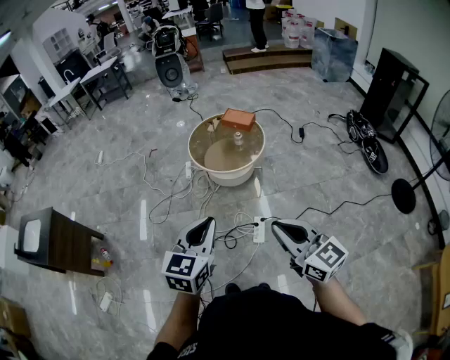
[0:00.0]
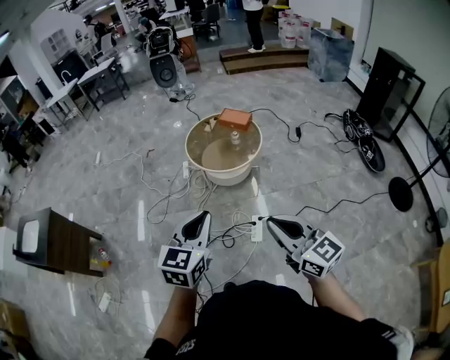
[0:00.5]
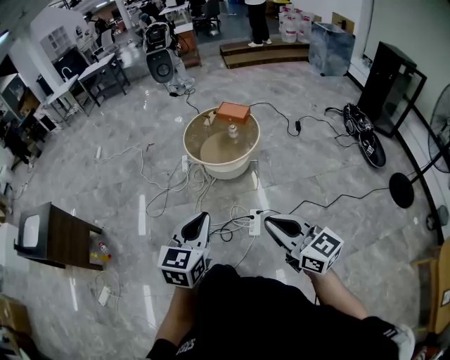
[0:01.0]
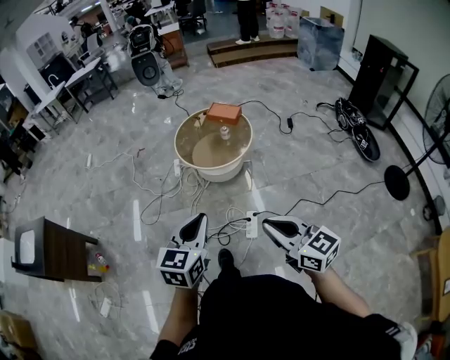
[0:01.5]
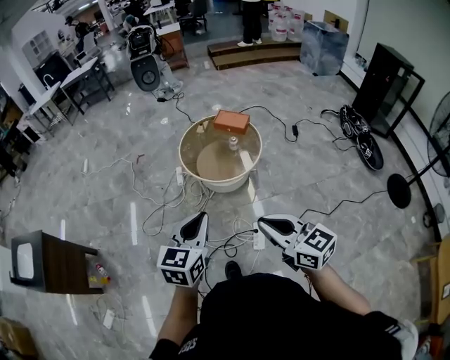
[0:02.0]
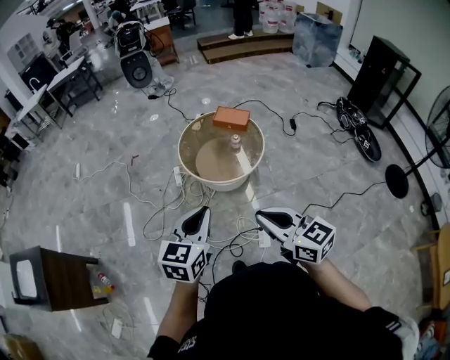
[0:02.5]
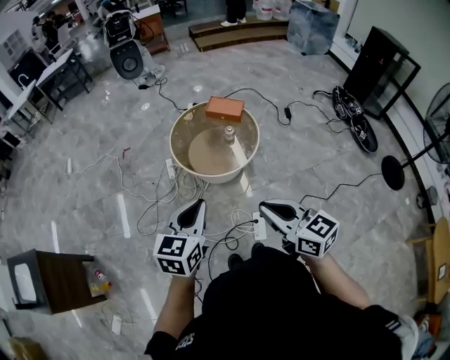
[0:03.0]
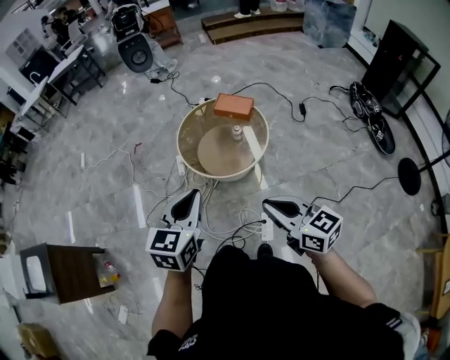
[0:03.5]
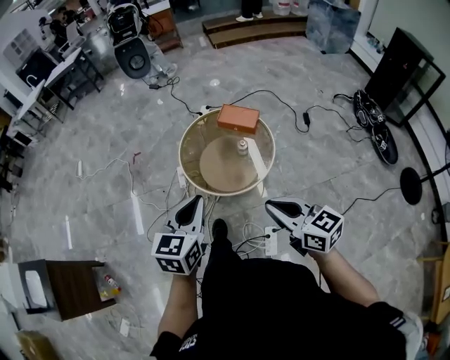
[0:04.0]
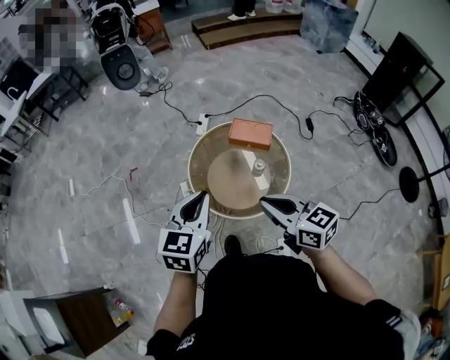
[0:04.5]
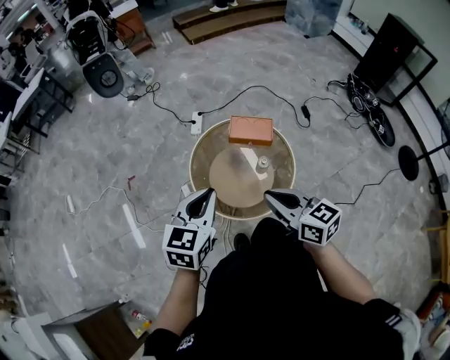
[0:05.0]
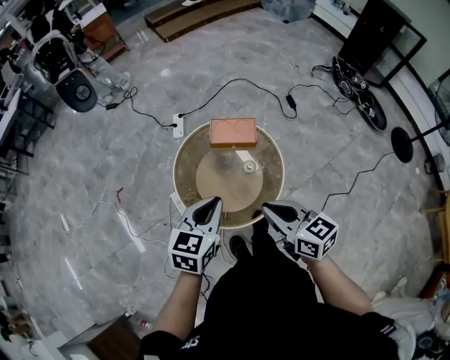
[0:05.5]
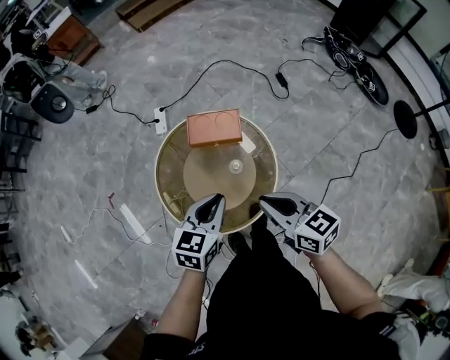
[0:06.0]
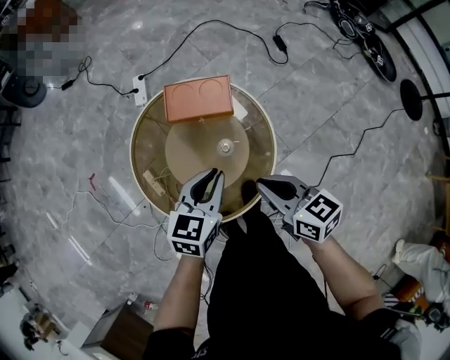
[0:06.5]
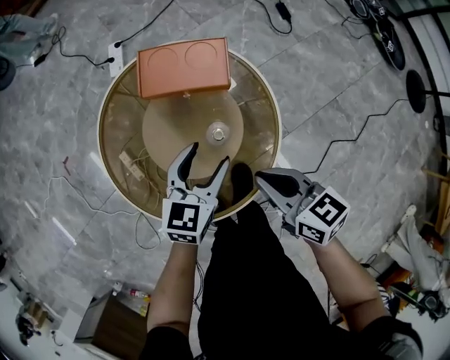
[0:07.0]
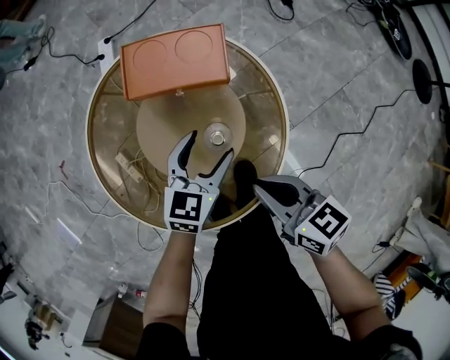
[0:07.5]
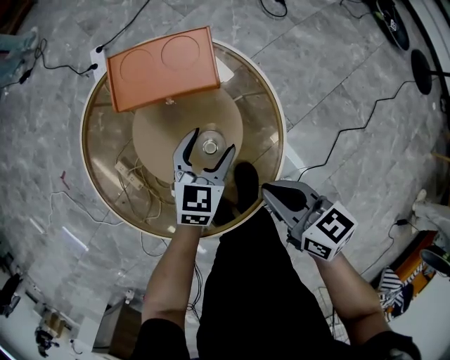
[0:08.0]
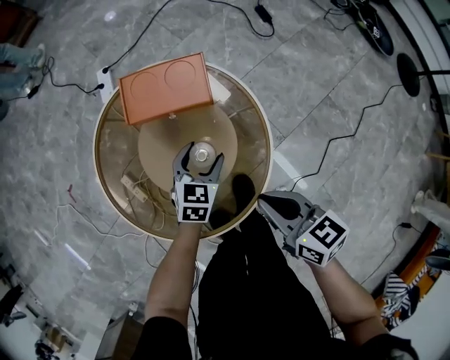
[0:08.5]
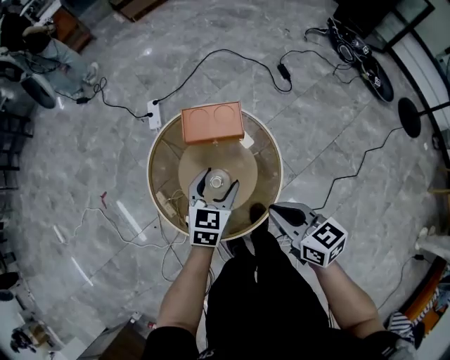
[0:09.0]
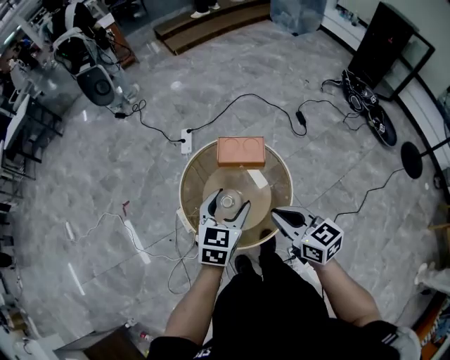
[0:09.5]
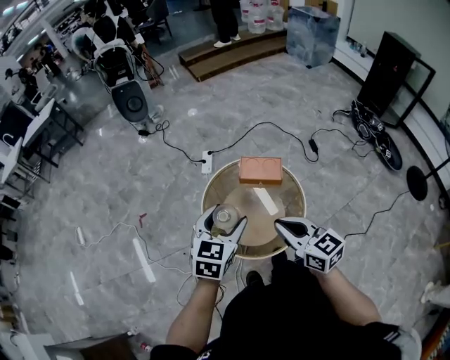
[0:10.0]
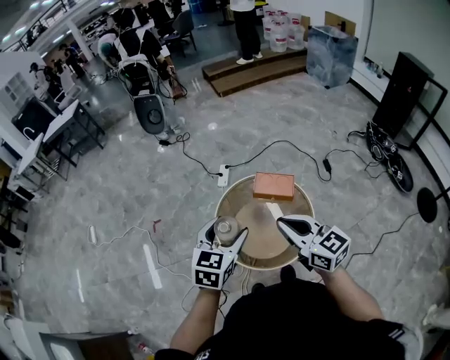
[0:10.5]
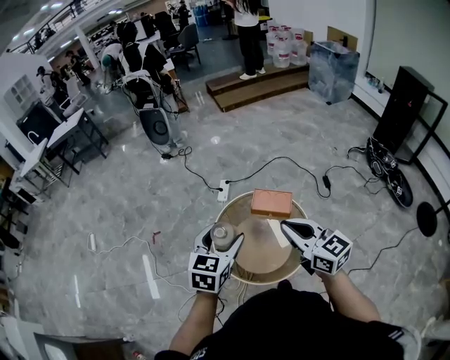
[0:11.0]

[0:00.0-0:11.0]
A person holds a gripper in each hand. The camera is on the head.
0:00.0 to 0:02.0: Both grippers move forward, some 15 cm.
0:02.0 to 0:03.5: Both grippers move forward, about 20 cm.
0:03.5 to 0:05.5: Both grippers are carried forward, approximately 40 cm. The right gripper swivels approximately 20 degrees, while the left gripper rotates approximately 30 degrees.
0:05.5 to 0:07.5: Both grippers travel together downward, approximately 40 cm. The left gripper opens its fingers.
0:07.5 to 0:09.0: The grippers both shift upward by roughly 20 cm.
0:09.0 to 0:11.0: The two grippers go approximately 35 cm upward and to the left. The left gripper turns by some 20 degrees. The right gripper changes its angle by some 30 degrees.

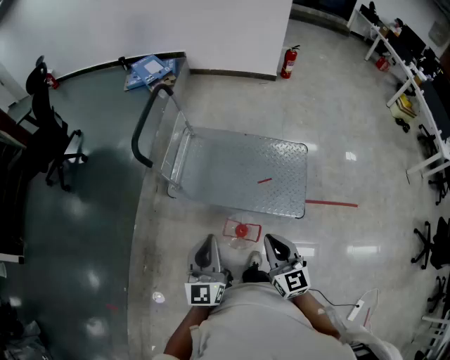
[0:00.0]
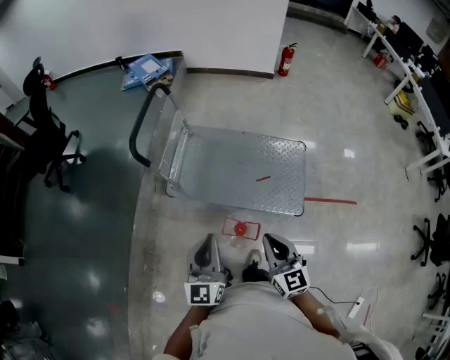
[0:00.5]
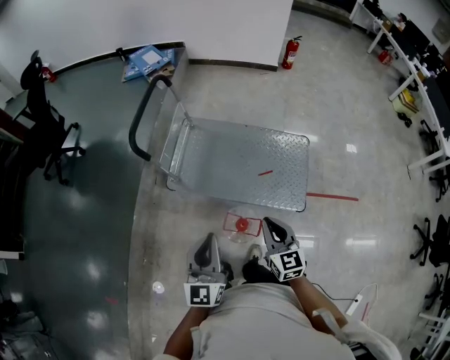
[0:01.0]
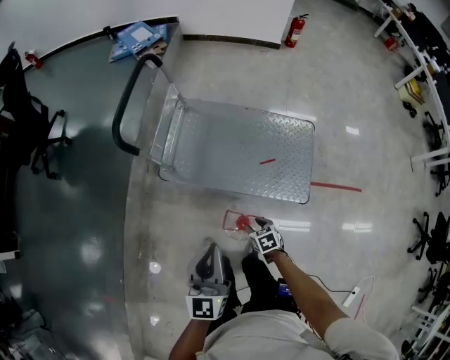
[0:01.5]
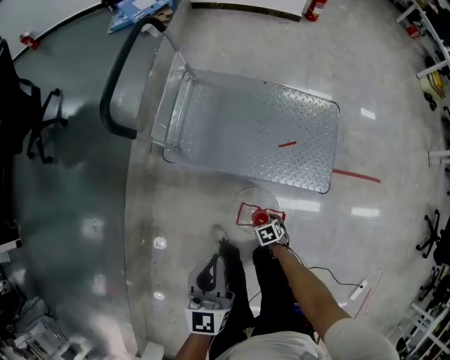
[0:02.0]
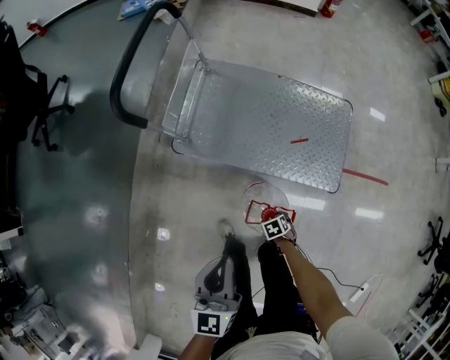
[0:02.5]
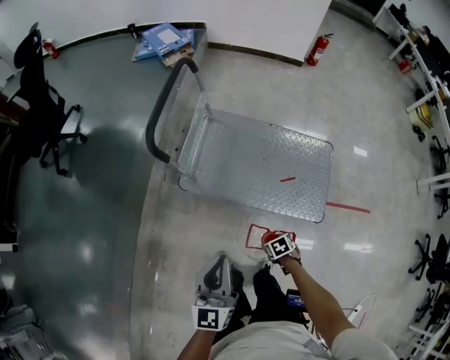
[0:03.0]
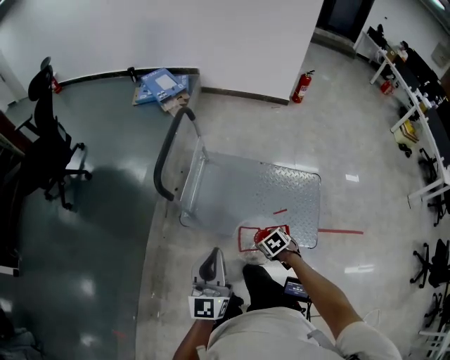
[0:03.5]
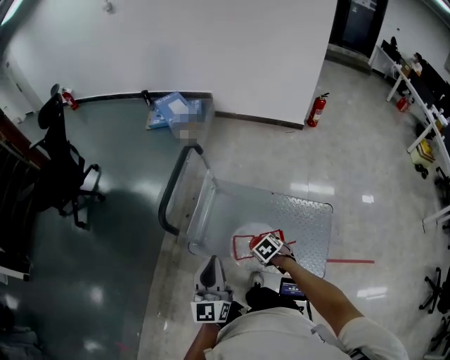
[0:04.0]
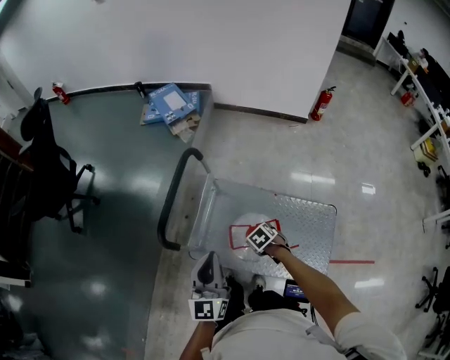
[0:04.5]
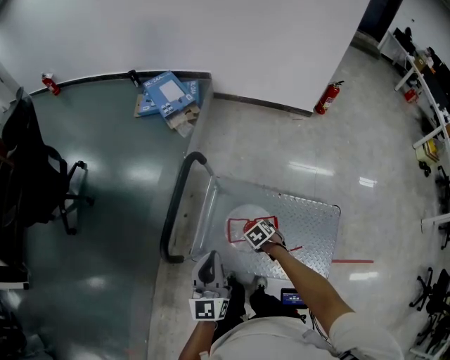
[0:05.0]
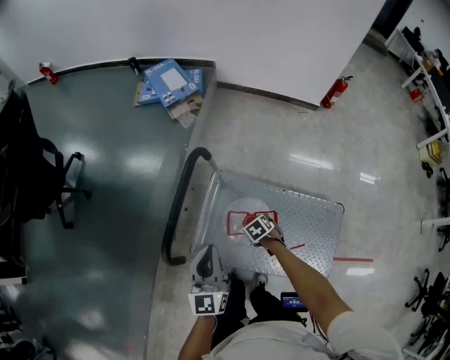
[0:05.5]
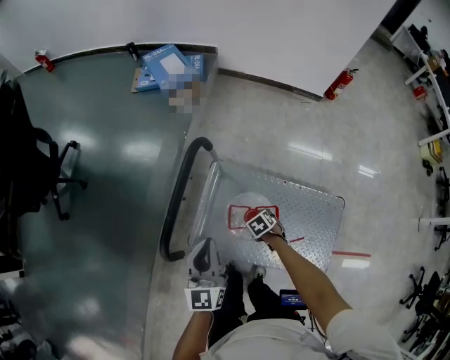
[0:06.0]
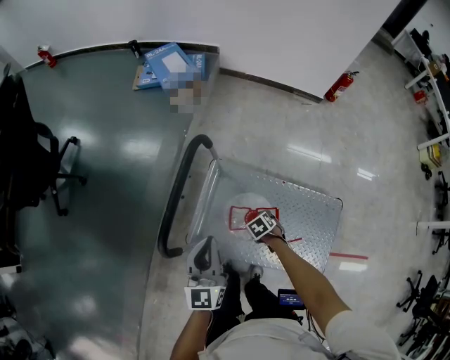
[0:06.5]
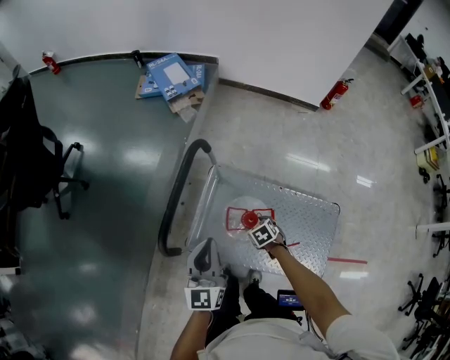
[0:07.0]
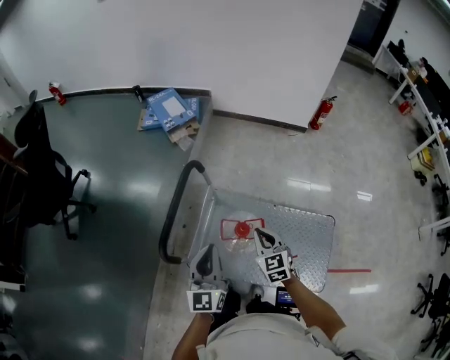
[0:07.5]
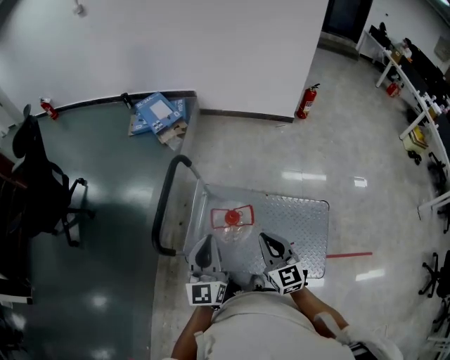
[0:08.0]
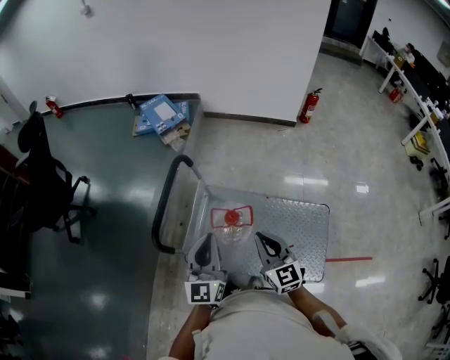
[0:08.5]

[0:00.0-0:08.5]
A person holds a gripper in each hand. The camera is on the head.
0:00.0 to 0:02.0: The left gripper goes approximately 15 cm downward. Meanwhile the right gripper travels downward by about 50 cm, points its fingers approximately 60 degrees further downward, and opens.
0:02.0 to 0:04.0: The right gripper moves upward, some 30 cm, and turns by approximately 30 degrees. The left gripper shifts by approximately 25 cm.
0:04.0 to 0:06.5: The right gripper moves approximately 30 cm. The left gripper changes place by roughly 30 cm.
0:06.5 to 0:08.5: The right gripper is displaced upward by approximately 40 cm, points its fingers roughly 70 degrees further upward, and closes. The left gripper moves some 20 cm.

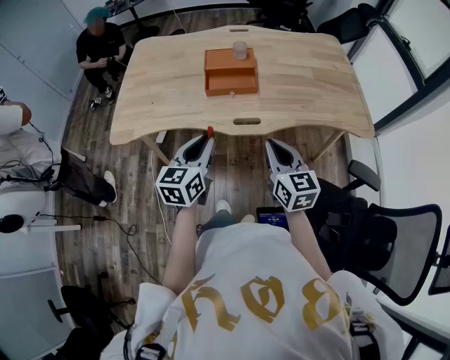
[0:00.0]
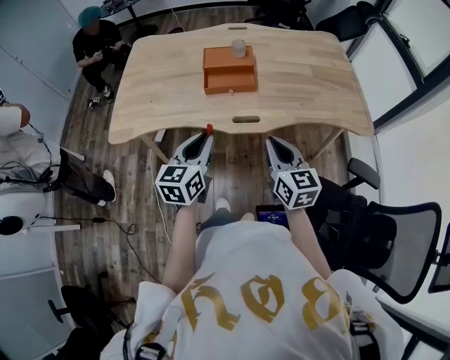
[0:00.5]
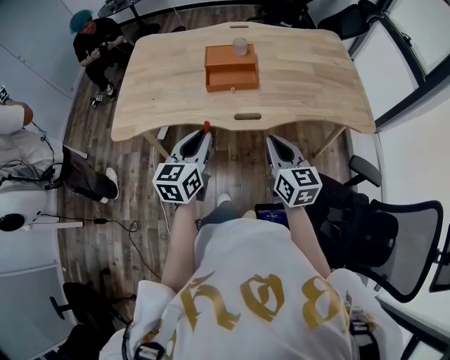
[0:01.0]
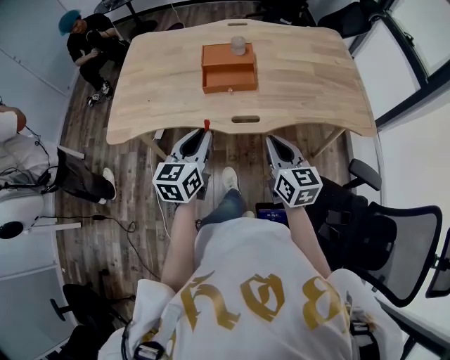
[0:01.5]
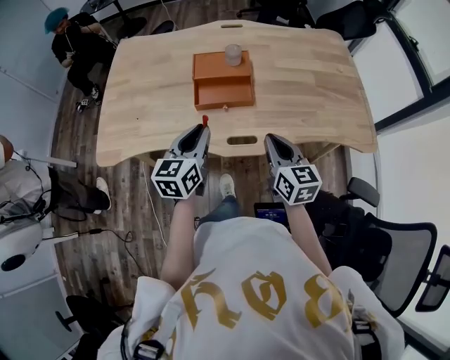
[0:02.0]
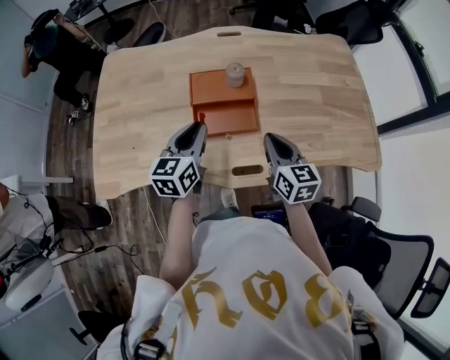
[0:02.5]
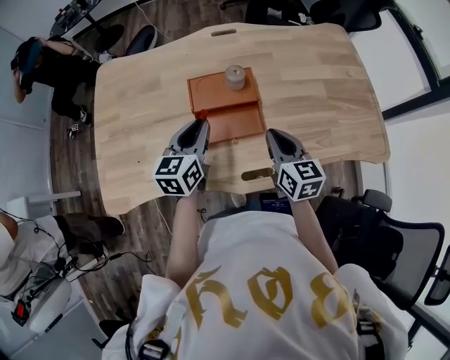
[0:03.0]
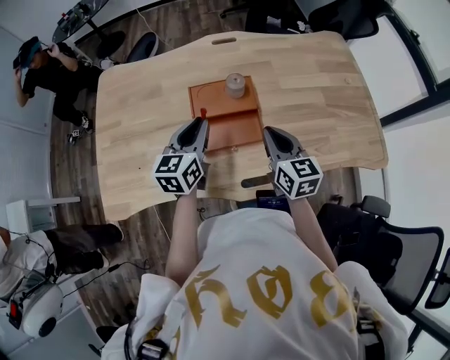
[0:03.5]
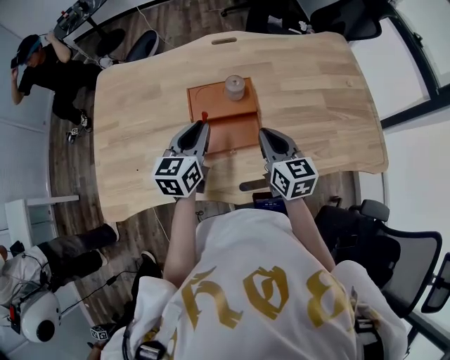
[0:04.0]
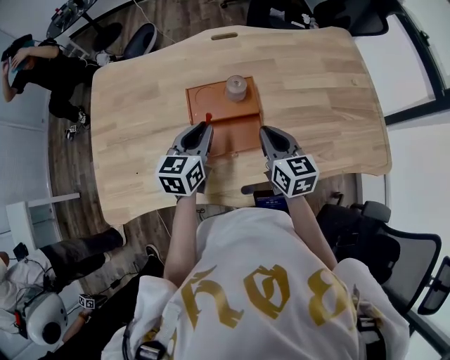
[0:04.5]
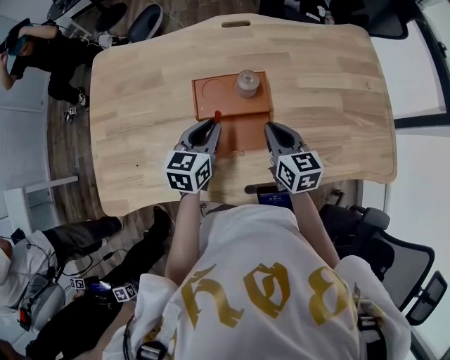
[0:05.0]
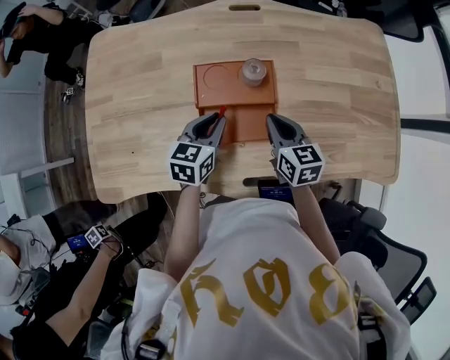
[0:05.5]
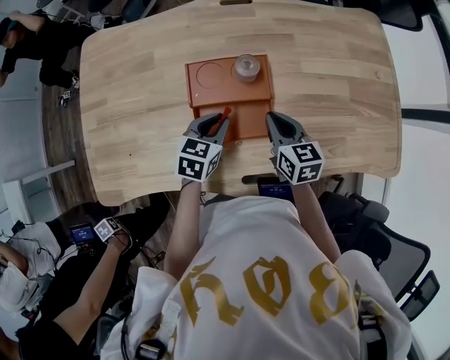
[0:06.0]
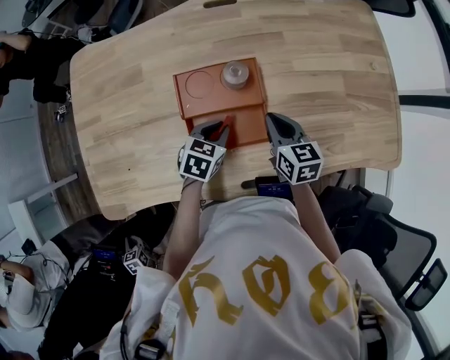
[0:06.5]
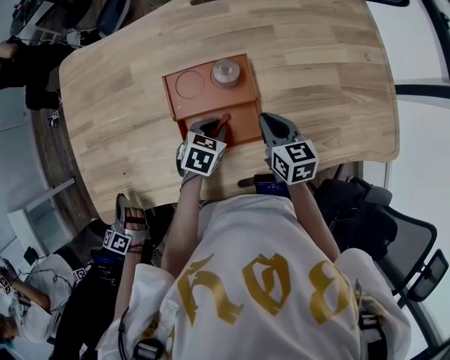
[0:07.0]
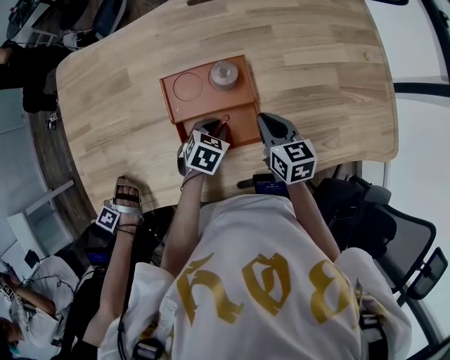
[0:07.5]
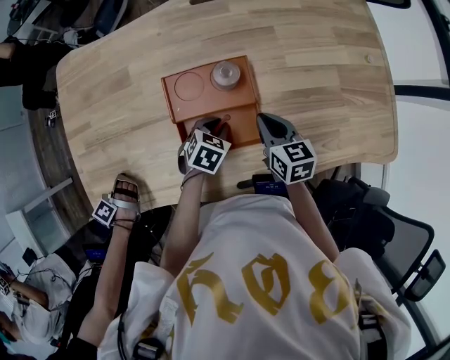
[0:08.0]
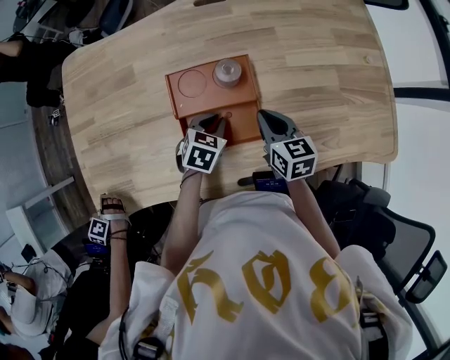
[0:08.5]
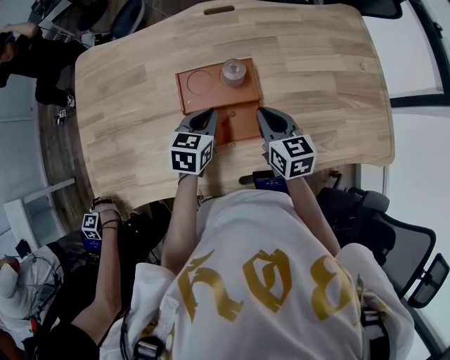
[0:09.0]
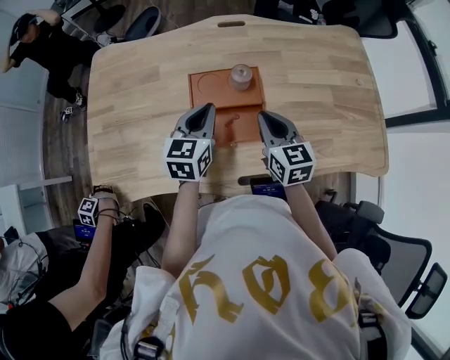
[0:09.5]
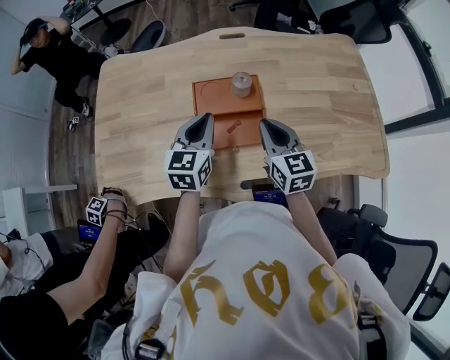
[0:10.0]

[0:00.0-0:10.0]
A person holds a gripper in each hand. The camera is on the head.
0:00.0 to 0:02.0: Both grippers move forward, about 15 cm.
0:02.0 to 0:04.0: Both grippers move forward, about 20 cm.
0:04.0 to 0:06.0: The left gripper goes about 15 cm downward, and changes its angle by some 30 degrees. Meanwhile the right gripper travels downward and forward by some 10 cm.
0:06.0 to 0:08.0: The left gripper travels downward by some 10 cm, and changes its angle by some 20 degrees.
0:08.0 to 0:10.0: The left gripper shifts about 25 cm upward, and angles its fingers upward, by roughly 40 degrees, while the right gripper moves upward and backward, some 15 cm, and changes its angle by approximately 20 degrees.
